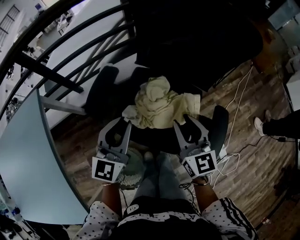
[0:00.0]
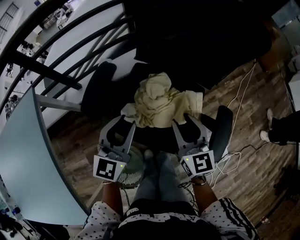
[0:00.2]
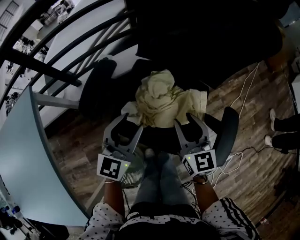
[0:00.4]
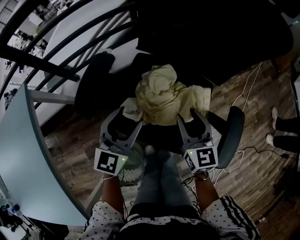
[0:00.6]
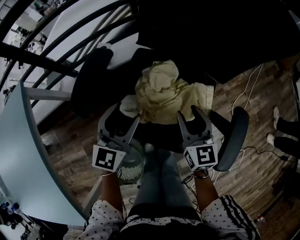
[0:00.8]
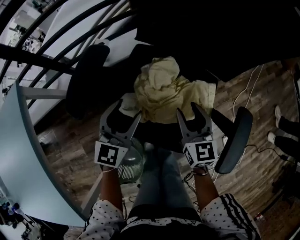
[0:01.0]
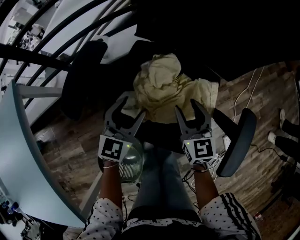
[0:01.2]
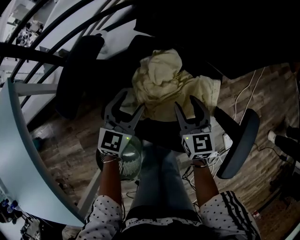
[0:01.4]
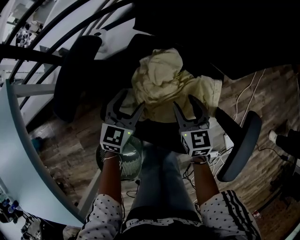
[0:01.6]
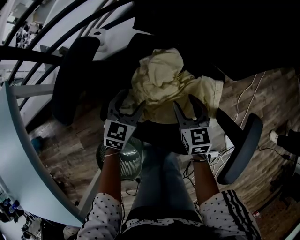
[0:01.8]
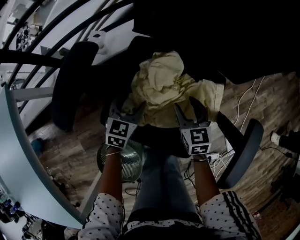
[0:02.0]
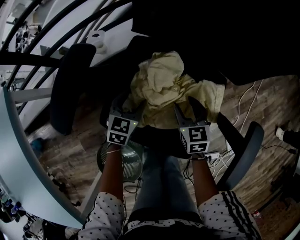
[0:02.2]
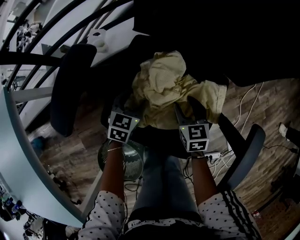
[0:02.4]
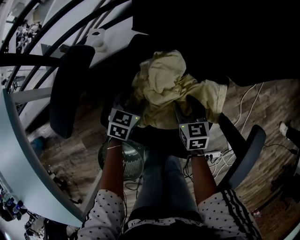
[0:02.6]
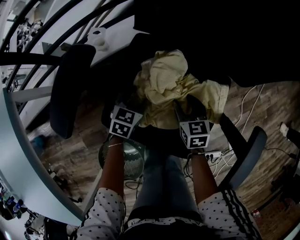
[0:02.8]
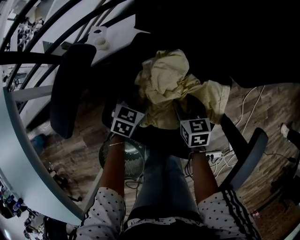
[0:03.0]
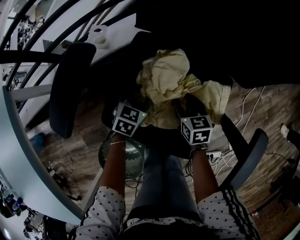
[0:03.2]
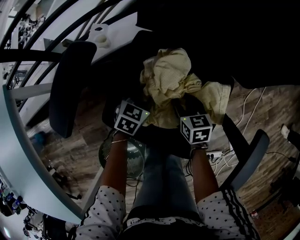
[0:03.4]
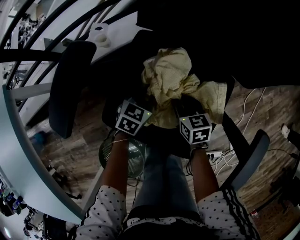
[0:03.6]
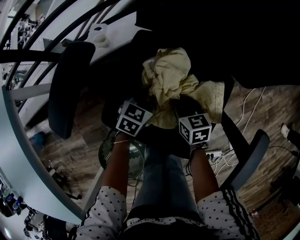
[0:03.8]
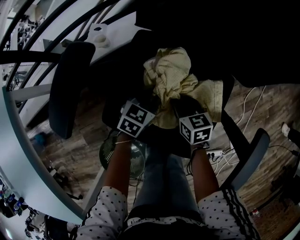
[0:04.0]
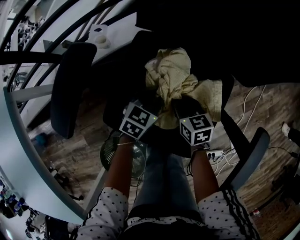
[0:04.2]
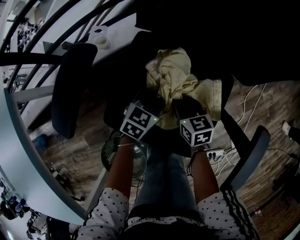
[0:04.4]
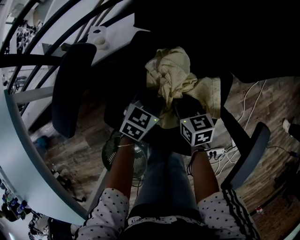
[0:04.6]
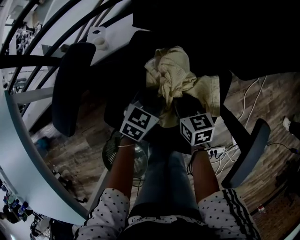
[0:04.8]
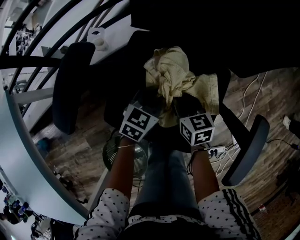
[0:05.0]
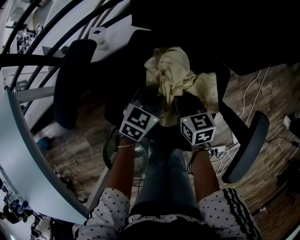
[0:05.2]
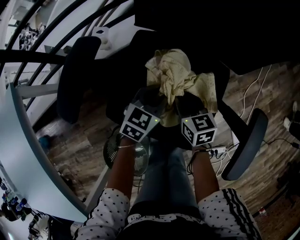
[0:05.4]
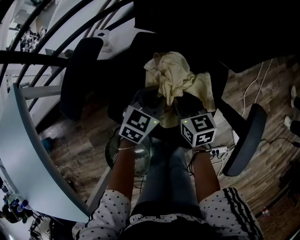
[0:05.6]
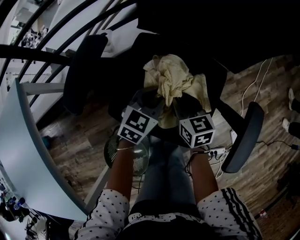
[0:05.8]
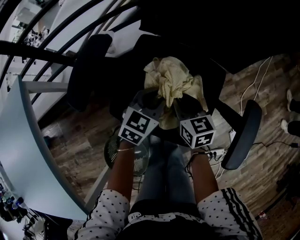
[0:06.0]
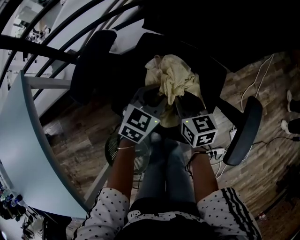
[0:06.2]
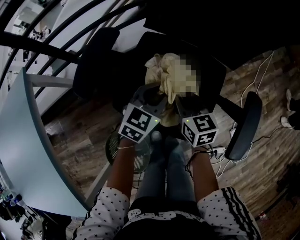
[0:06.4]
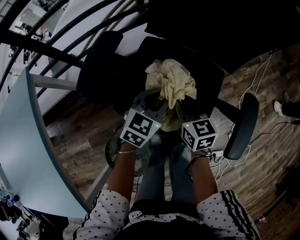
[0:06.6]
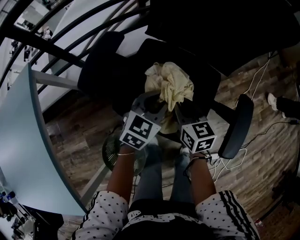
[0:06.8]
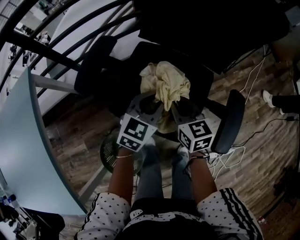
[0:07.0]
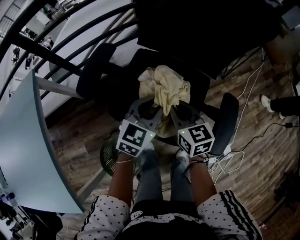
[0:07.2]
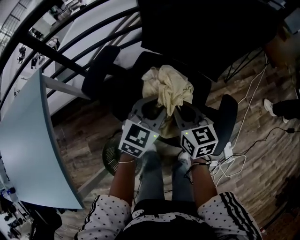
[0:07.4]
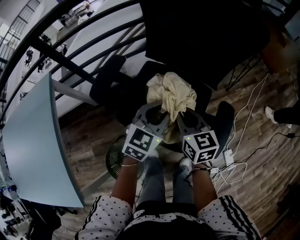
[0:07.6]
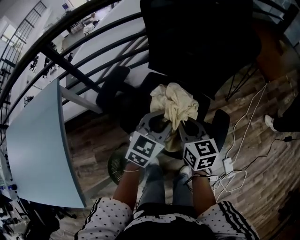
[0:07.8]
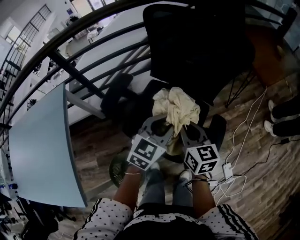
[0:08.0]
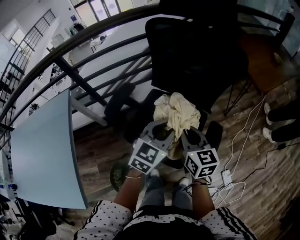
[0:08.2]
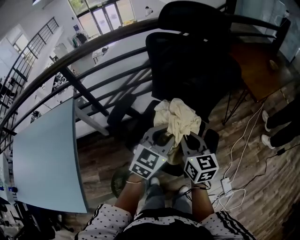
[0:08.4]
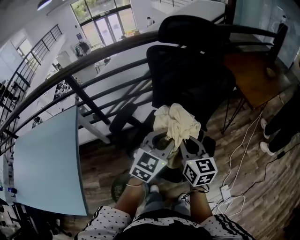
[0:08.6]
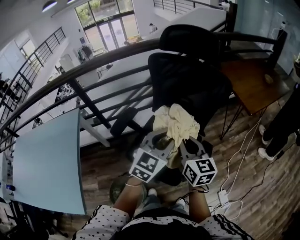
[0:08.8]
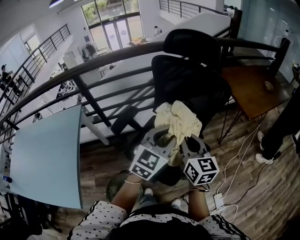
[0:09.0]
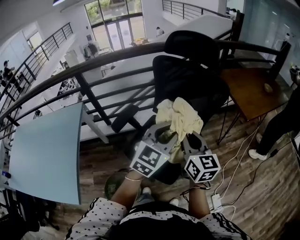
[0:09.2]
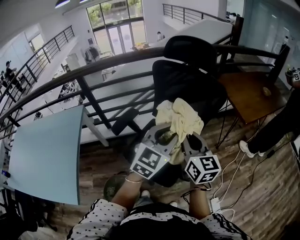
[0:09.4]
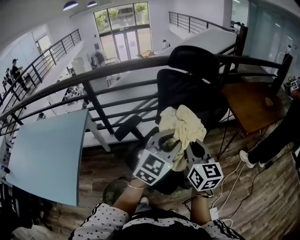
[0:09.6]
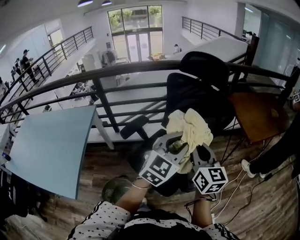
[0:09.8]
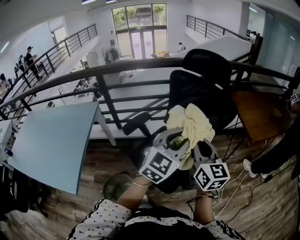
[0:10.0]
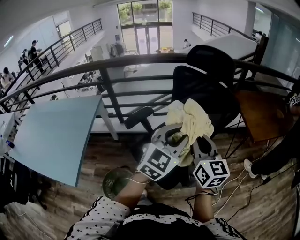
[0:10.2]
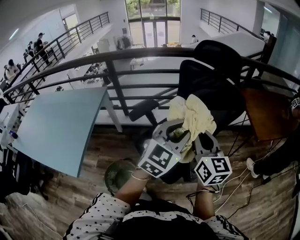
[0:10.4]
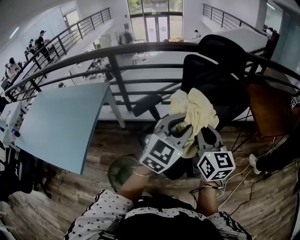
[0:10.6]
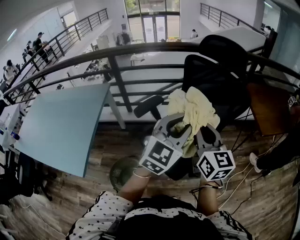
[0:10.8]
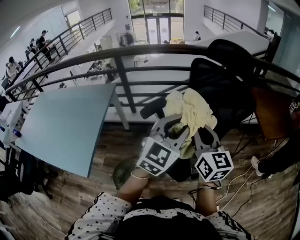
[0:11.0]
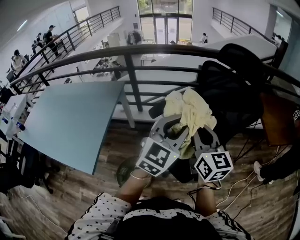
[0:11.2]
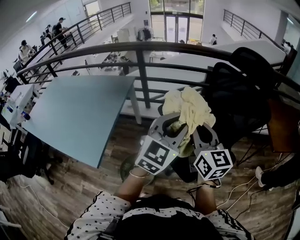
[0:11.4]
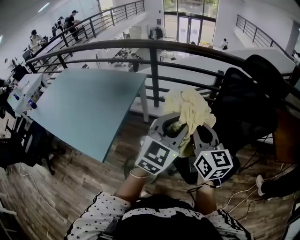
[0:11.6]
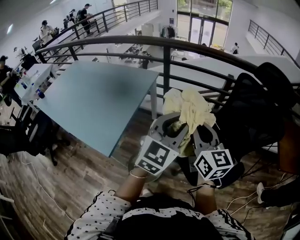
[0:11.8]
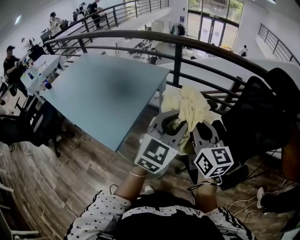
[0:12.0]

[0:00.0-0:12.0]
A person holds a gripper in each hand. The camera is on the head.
0.0 to 1.6 s: The two grippers go about 25 cm downward. The left gripper turns by approximately 20 degrees, and opens up, while the right gripper opens.
1.6 to 3.0 s: Both grippers move downward, roughly 10 cm. The left gripper rotates about 20 degrees.
3.0 to 4.4 s: The left gripper moves to the right, approximately 5 cm, and closes its fingers; the right gripper closes its fingers.
4.4 to 6.0 s: The two grippers go some 10 cm upward.
6.0 to 7.6 s: Both grippers travel together upward, approximately 15 cm.
7.6 to 9.0 s: The grippers both shift upward by roughly 25 cm.
9.0 to 10.4 s: The right gripper shifts roughly 5 cm upward. Meanwhile the left gripper travels upward and backward by some 10 cm.
10.4 to 12.0 s: The left gripper shifts by roughly 30 cm, and changes its angle by approximately 30 degrees. Meanwhile the right gripper changes place by about 30 cm, and rotates roughly 30 degrees.

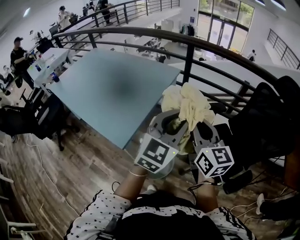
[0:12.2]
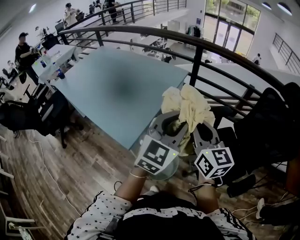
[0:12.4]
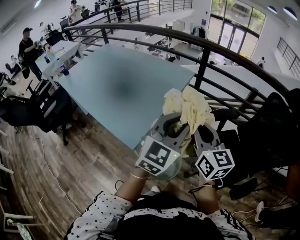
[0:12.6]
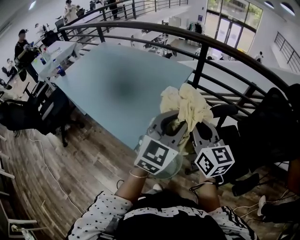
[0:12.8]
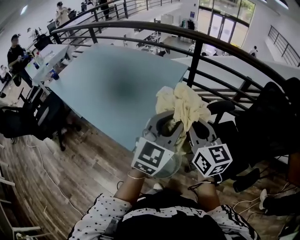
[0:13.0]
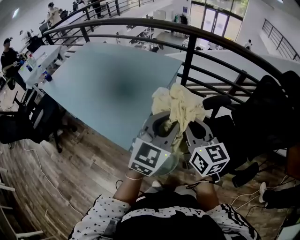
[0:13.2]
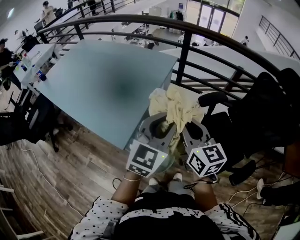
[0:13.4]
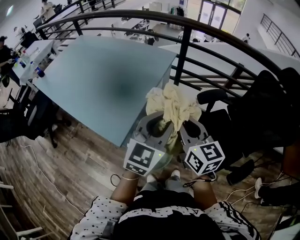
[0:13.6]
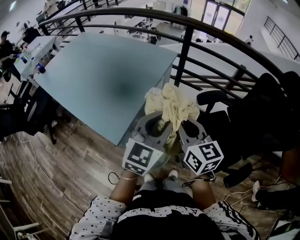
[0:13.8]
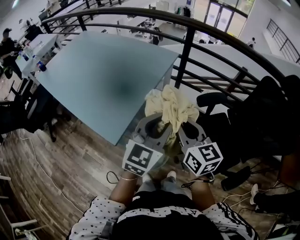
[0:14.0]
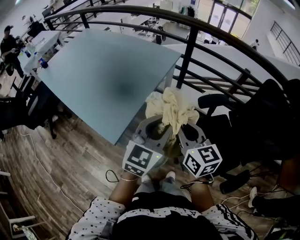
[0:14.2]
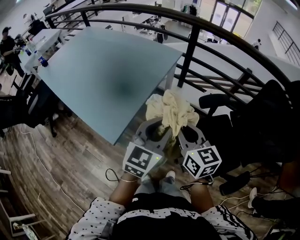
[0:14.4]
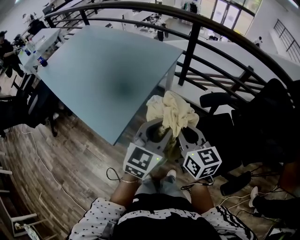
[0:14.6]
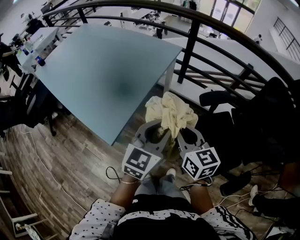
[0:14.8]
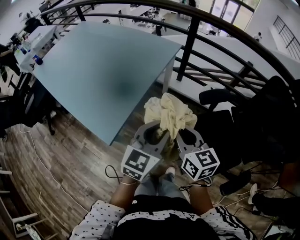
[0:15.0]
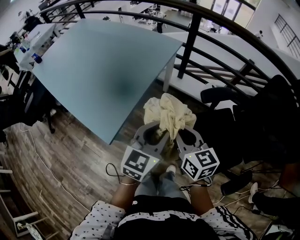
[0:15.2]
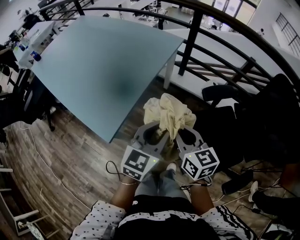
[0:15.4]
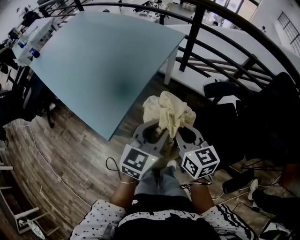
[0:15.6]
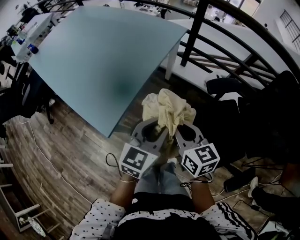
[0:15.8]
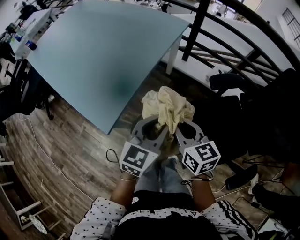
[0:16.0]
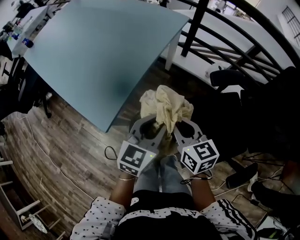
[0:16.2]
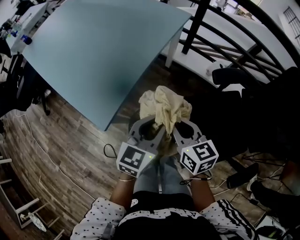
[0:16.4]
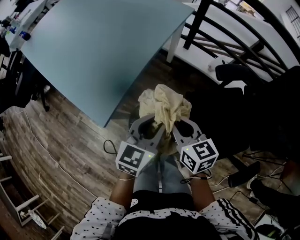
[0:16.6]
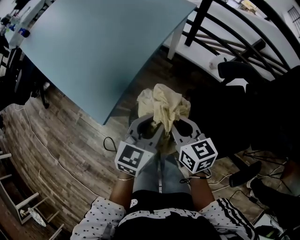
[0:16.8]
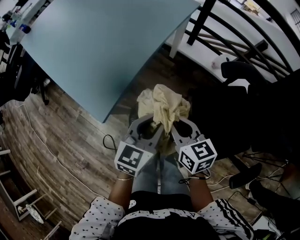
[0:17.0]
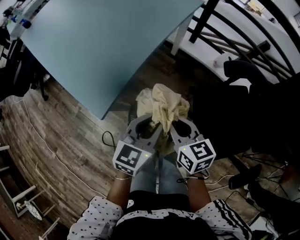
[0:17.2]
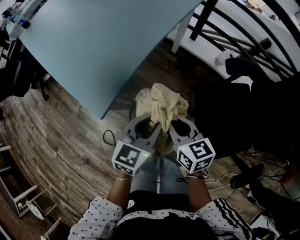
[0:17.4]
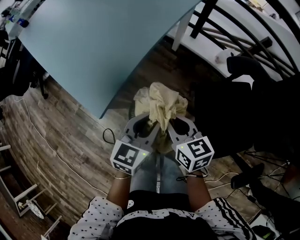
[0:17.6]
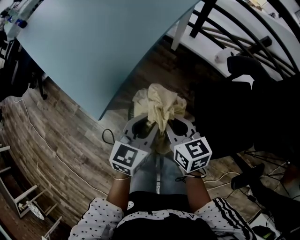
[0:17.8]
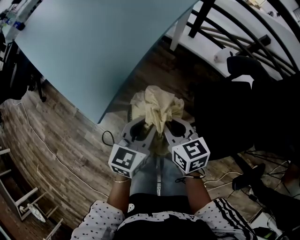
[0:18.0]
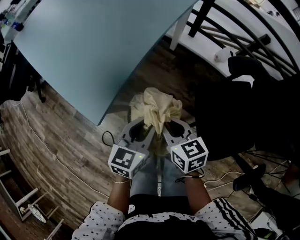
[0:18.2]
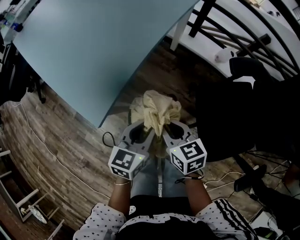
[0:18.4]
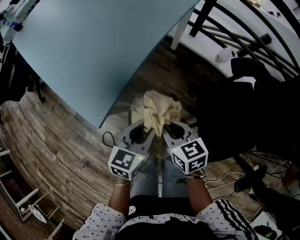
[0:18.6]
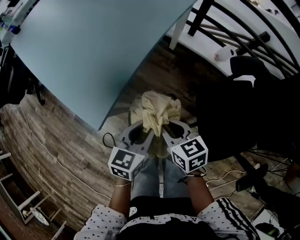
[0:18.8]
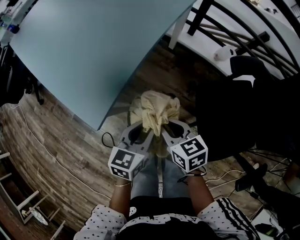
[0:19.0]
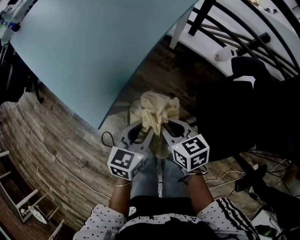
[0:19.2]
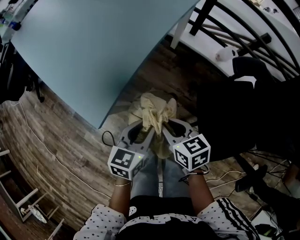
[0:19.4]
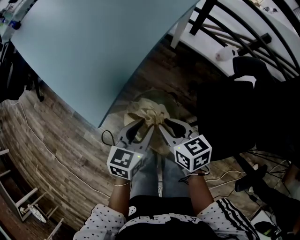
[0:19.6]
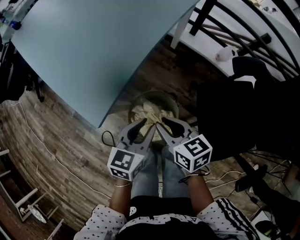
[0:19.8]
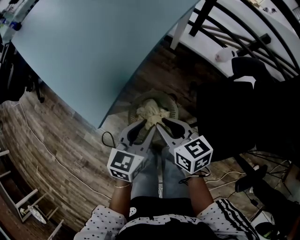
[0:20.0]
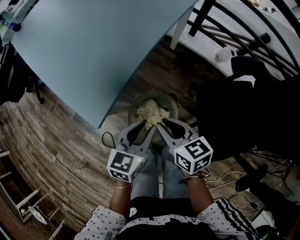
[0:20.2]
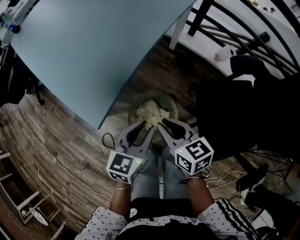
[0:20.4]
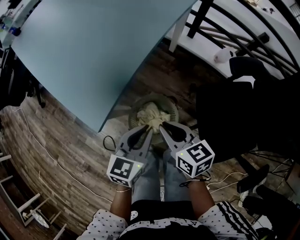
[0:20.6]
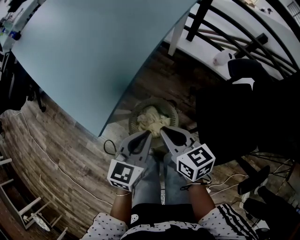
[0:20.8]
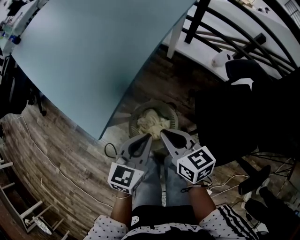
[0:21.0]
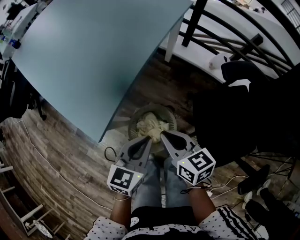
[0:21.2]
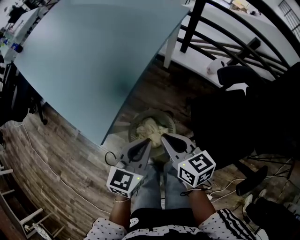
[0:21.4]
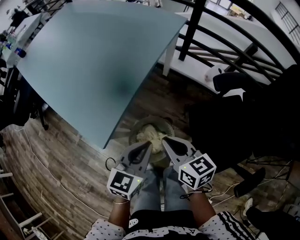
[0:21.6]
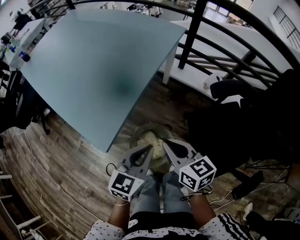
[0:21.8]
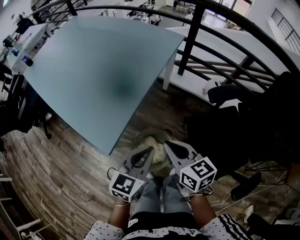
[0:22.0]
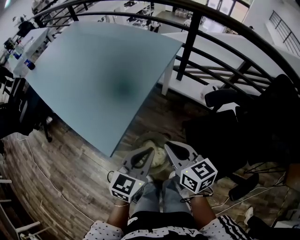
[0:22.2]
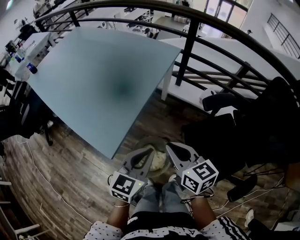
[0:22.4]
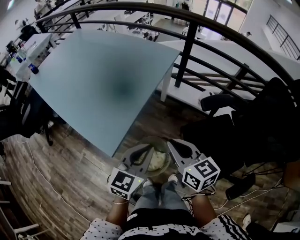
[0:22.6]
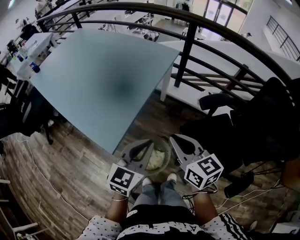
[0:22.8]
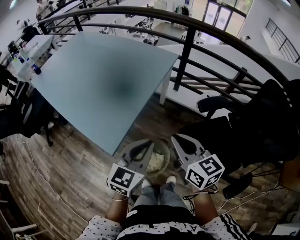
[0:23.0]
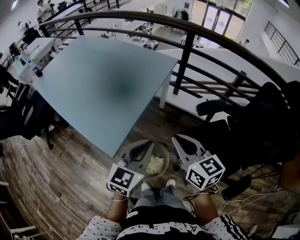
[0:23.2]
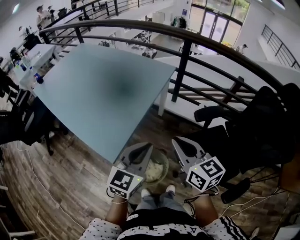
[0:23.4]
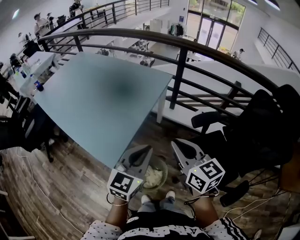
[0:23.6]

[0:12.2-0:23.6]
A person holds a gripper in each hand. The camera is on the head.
12.2 to 13.6 s: The grippers both shift downward and to the left by some 10 cm.
13.6 to 15.0 s: Both grippers travel together downward, approximately 10 cm.
15.0 to 16.4 s: The grippers both shift downward by roughly 10 cm.
16.4 to 17.8 s: The grippers both shift downward by some 10 cm.
17.8 to 19.4 s: The right gripper changes place by roughly 5 cm; the left gripper shifts about 5 cm downward.
19.4 to 20.8 s: The grippers stay close to where they were, moving slightly.
20.8 to 22.2 s: Both grippers move upward, about 15 cm.
22.2 to 23.6 s: The two grippers go about 15 cm upward.

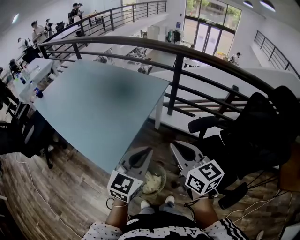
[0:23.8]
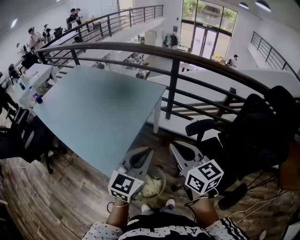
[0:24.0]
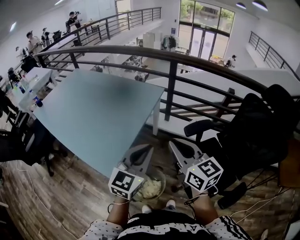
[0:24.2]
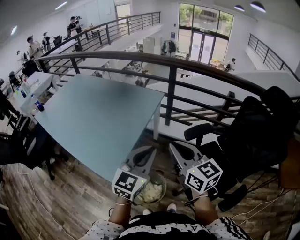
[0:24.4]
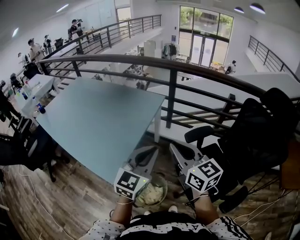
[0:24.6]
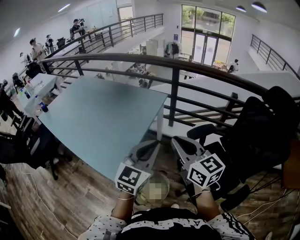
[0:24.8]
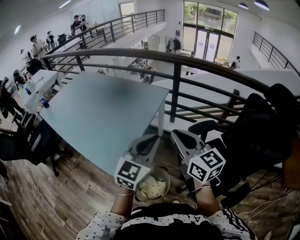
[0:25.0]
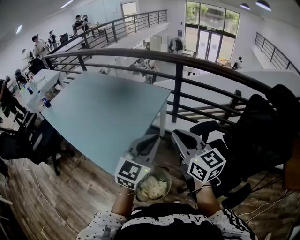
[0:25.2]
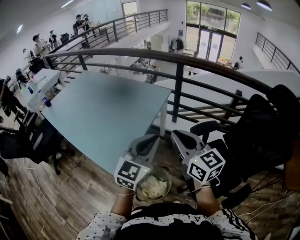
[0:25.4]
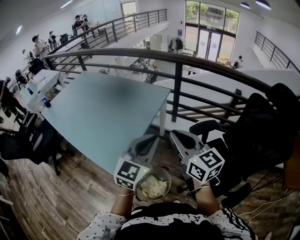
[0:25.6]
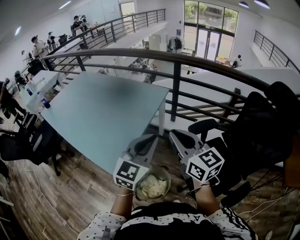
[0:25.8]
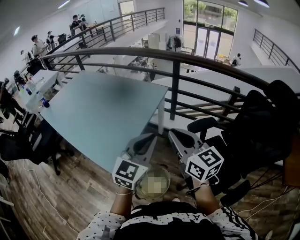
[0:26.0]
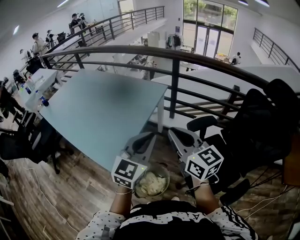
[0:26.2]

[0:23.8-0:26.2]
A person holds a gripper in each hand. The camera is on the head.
23.8 to 25.0 s: Both grippers travel together upward, about 5 cm.
25.0 to 26.2 s: Both grippers stay put.
